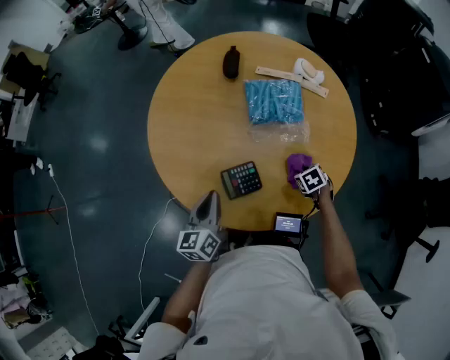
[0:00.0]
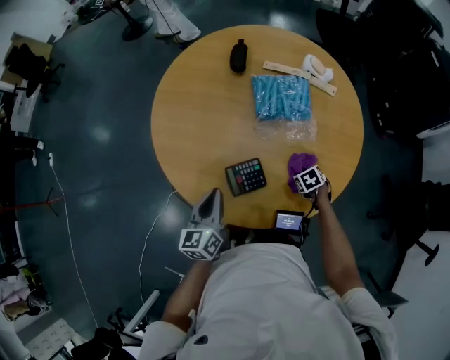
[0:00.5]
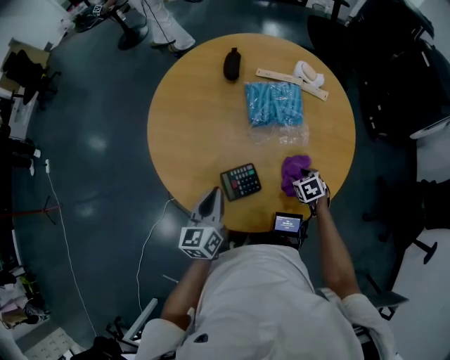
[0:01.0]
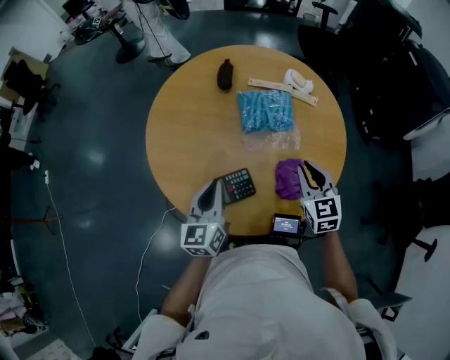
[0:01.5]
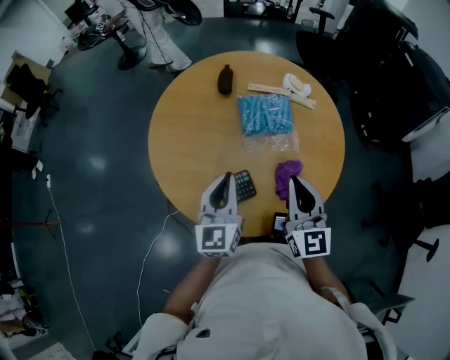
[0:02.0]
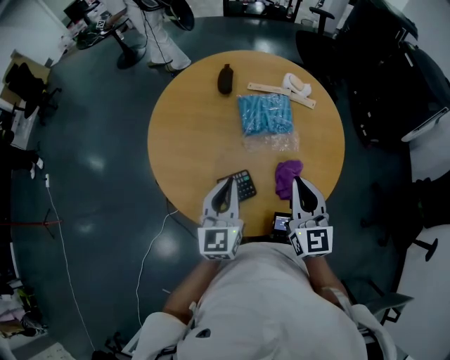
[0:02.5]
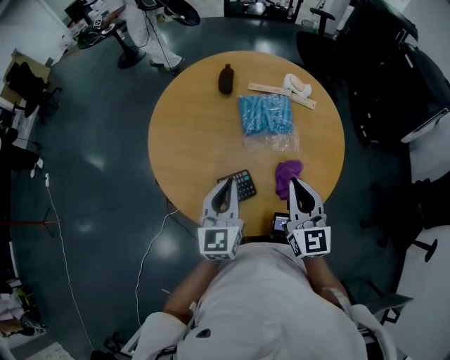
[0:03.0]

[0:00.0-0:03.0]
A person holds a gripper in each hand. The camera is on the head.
0:00.0 to 0:01.5: The right gripper is displaced upward by roughly 25 cm, angles its fingers upward, by some 50 degrees, and opens, then closes once more; the left gripper travels upward by approximately 5 cm.
0:01.5 to 0:03.0: The left gripper shifts by about 5 cm. The right gripper moves upward, backward and to the left, about 10 cm, and rotates some 20 degrees.

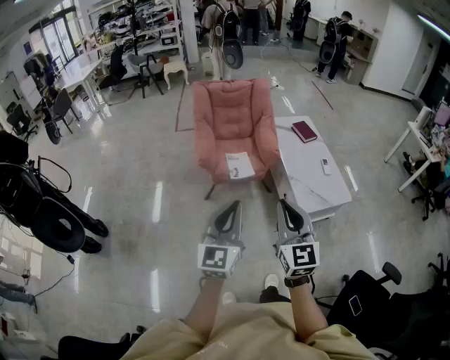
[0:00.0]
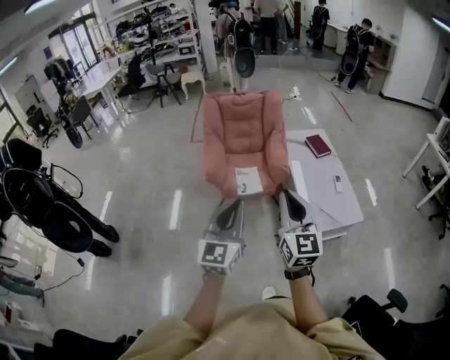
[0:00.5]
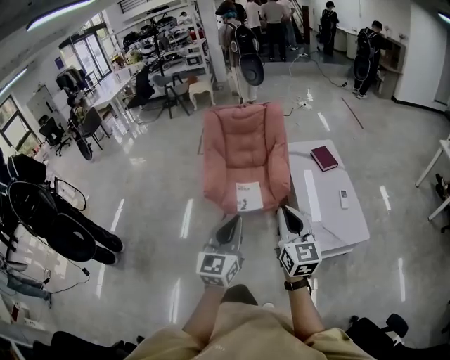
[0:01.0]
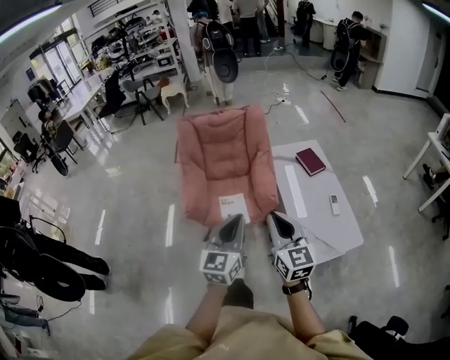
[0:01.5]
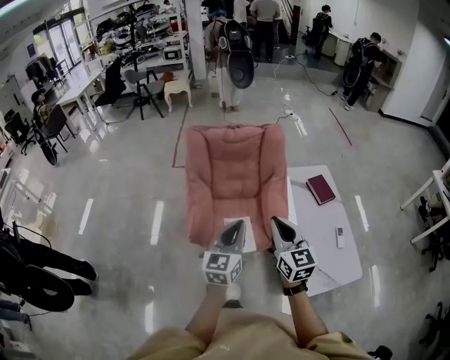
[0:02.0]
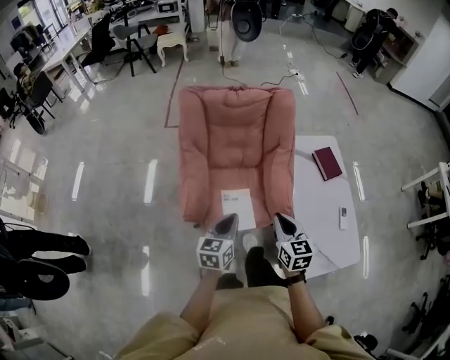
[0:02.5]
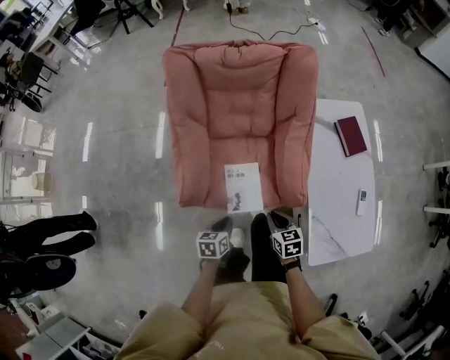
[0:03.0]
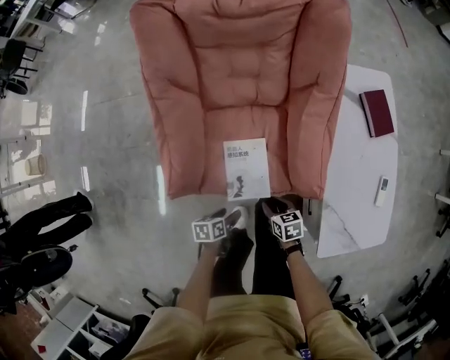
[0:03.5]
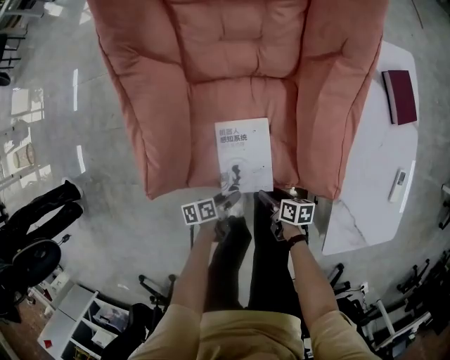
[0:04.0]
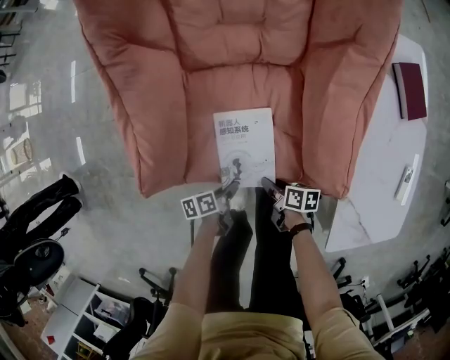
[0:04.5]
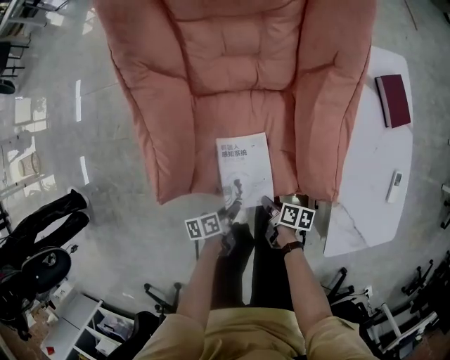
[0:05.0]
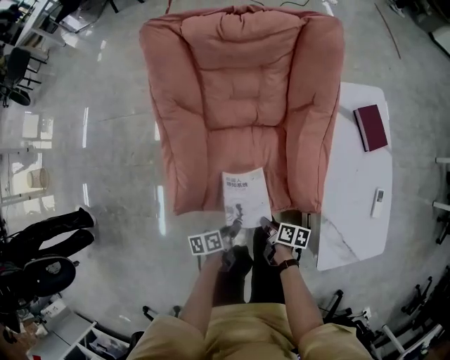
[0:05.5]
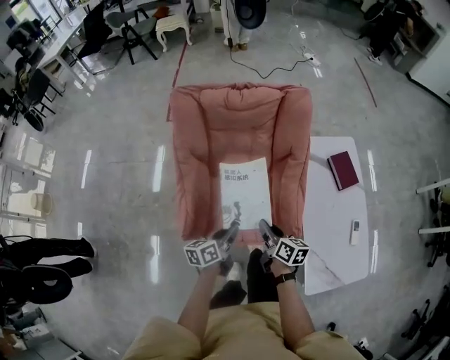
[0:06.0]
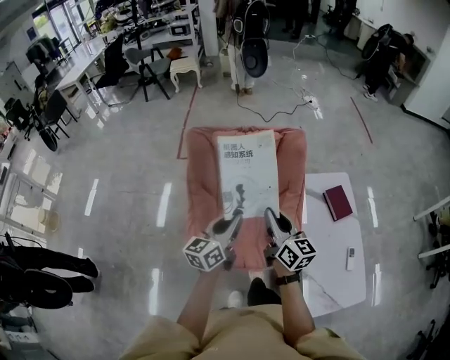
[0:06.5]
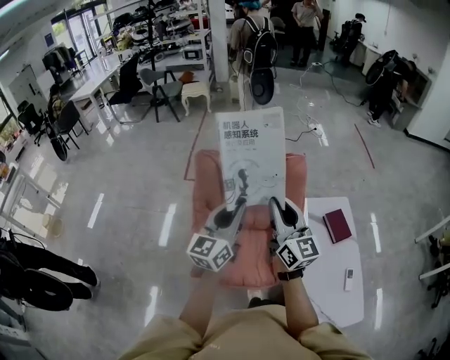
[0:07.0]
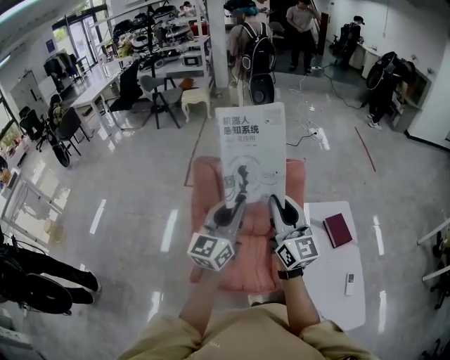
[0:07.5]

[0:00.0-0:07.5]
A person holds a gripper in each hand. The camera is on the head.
0:00.0 to 0:02.0: The two grippers travel together, forward, approximately 50 cm.
0:02.0 to 0:04.0: The two grippers go about 70 cm downward. The left gripper points its fingers approximately 40 degrees further downward, and opens; the right gripper tilts its fingers approximately 40 degrees downward, and opens its fingers.
0:04.0 to 0:05.5: The grippers both shift upward by roughly 15 cm. The right gripper closes its fingers. The left gripper closes up.
0:05.5 to 0:07.5: The grippers both shift upward by roughly 60 cm. The left gripper tips its fingers upward by about 50 degrees, while the right gripper angles its fingers upward, by approximately 60 degrees.

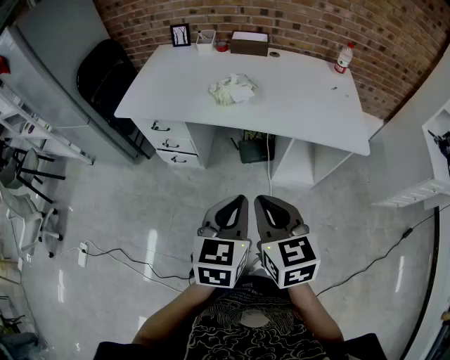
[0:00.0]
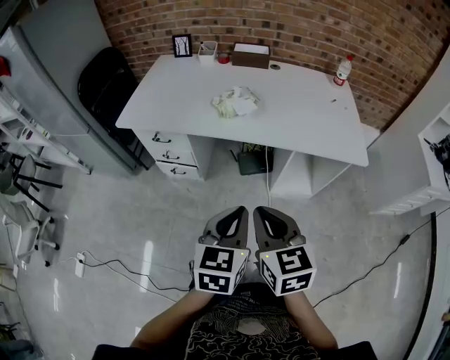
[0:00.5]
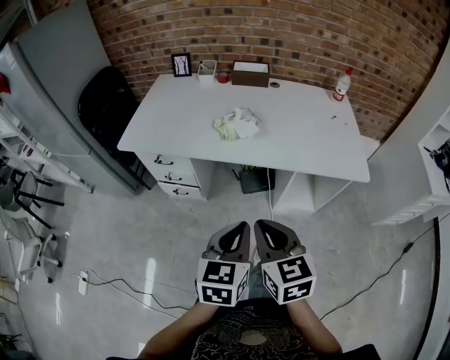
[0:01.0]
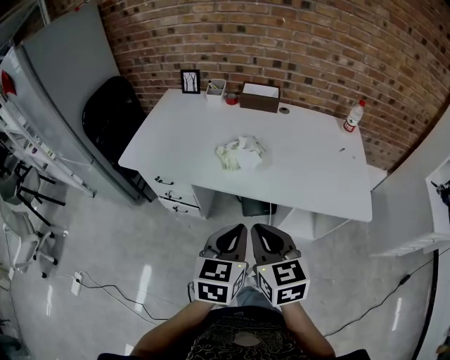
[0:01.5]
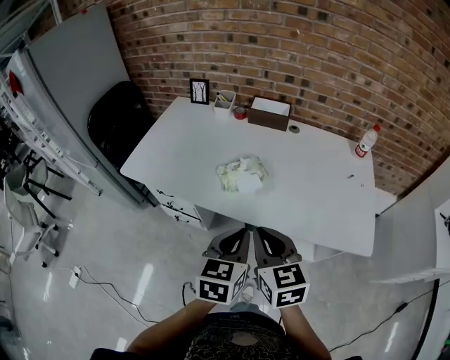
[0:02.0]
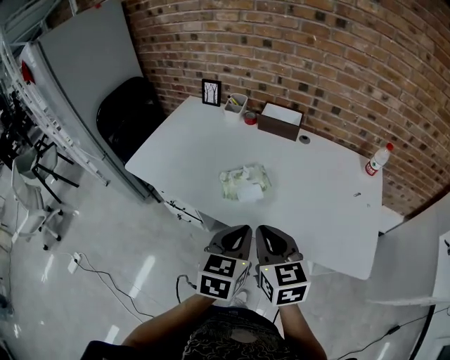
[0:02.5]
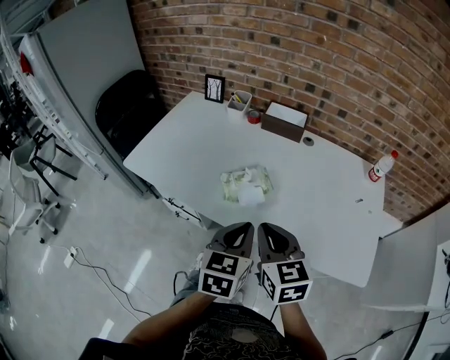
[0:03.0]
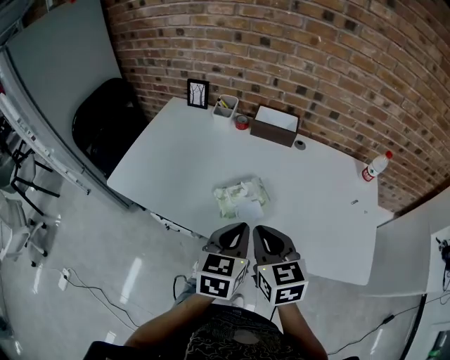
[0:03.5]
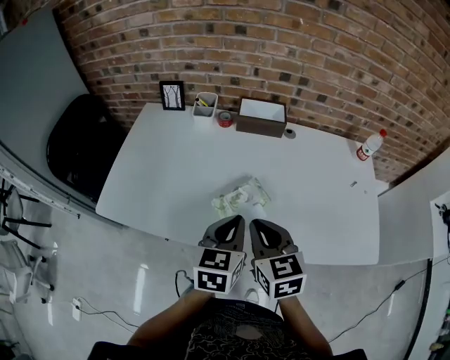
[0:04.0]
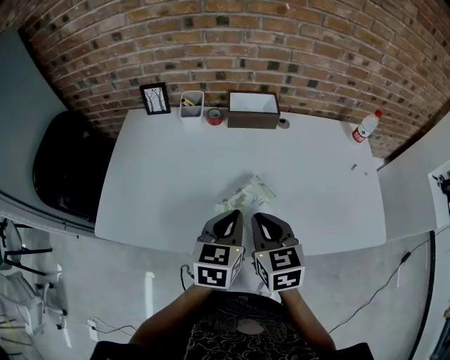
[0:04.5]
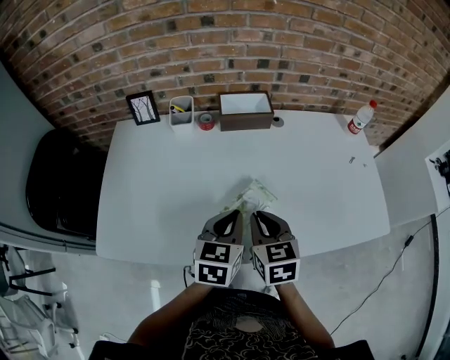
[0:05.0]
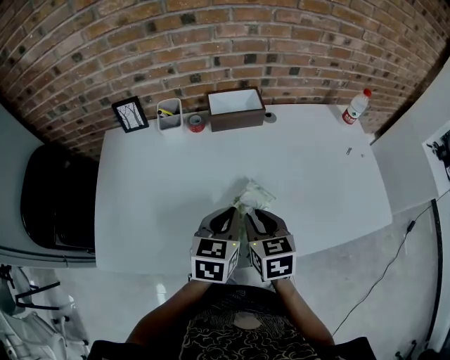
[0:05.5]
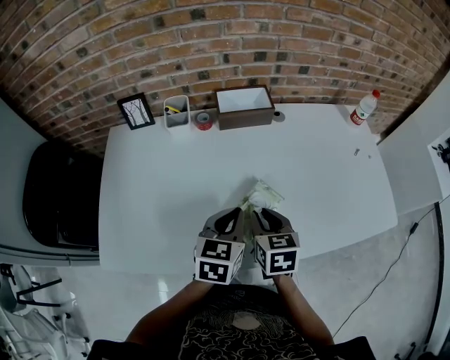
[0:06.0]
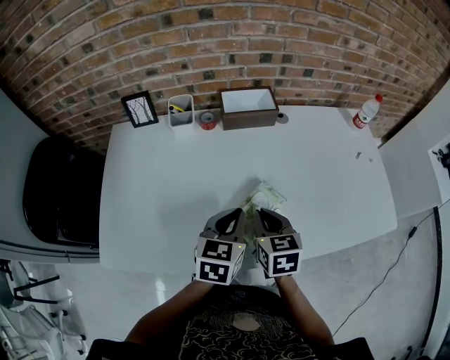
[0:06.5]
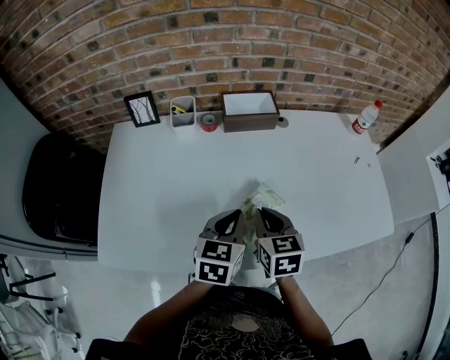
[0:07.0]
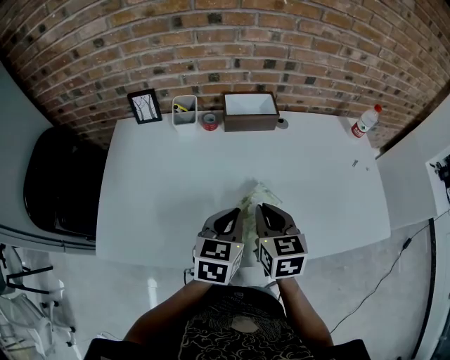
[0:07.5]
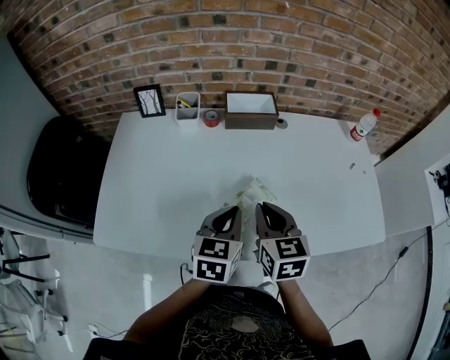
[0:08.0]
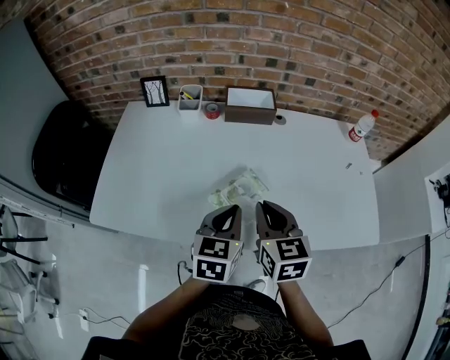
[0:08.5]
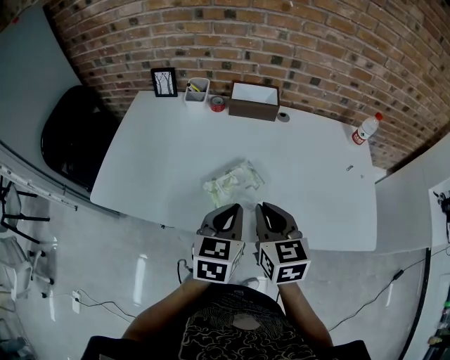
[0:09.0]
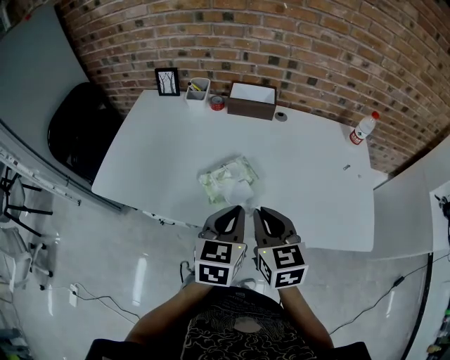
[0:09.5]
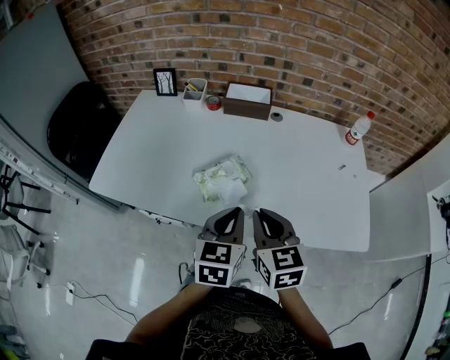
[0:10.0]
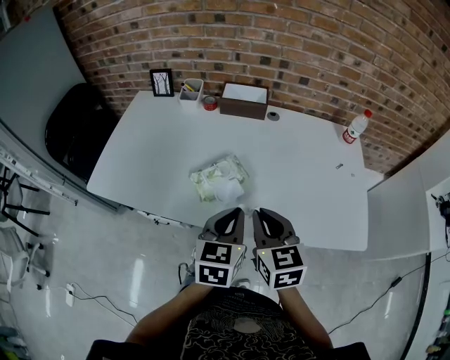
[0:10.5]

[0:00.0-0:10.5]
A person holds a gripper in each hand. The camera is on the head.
0:00.0 to 0:02.0: The grippers both shift forward by approximately 20 cm.
0:02.0 to 0:04.0: The grippers both shift forward by roughly 20 cm.
0:04.0 to 0:06.5: The left gripper travels forward, downward and to the left by some 10 cm. The right gripper moves downward and forward, roughly 15 cm, and swivels roughly 20 degrees.
0:06.5 to 0:08.5: The right gripper goes some 10 cm upward. The left gripper travels backward by roughly 5 cm.
0:08.5 to 0:10.5: The left gripper heads to the right and backward, covering about 10 cm. The right gripper heads backward and to the right, covering roughly 10 cm.

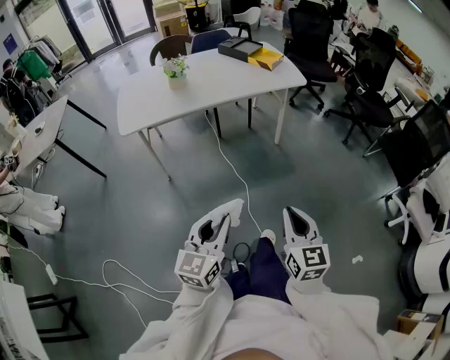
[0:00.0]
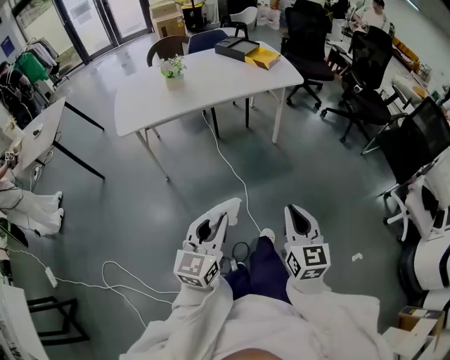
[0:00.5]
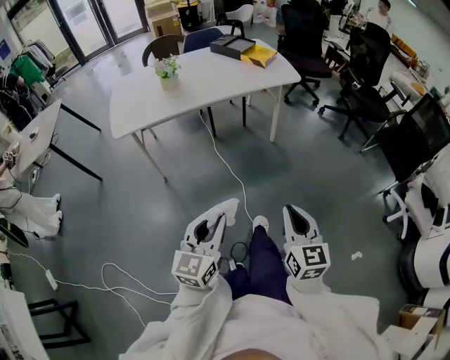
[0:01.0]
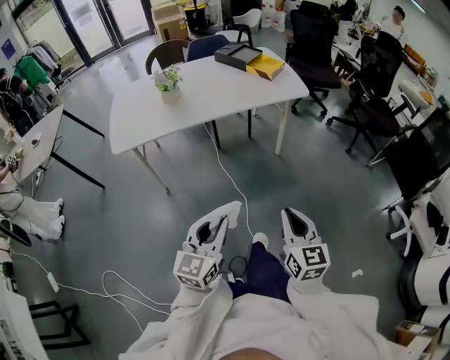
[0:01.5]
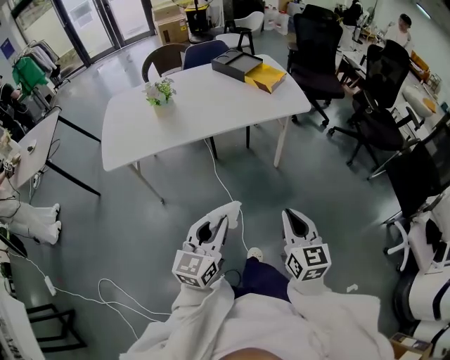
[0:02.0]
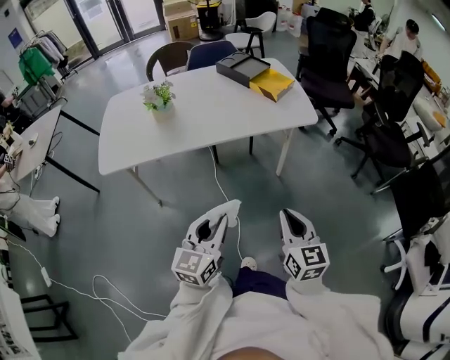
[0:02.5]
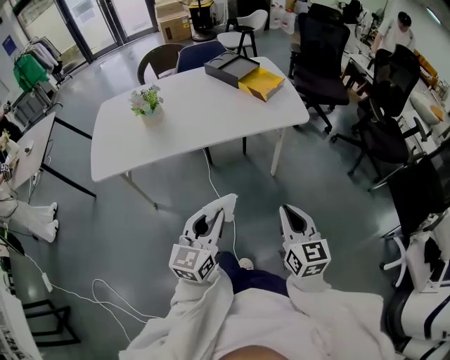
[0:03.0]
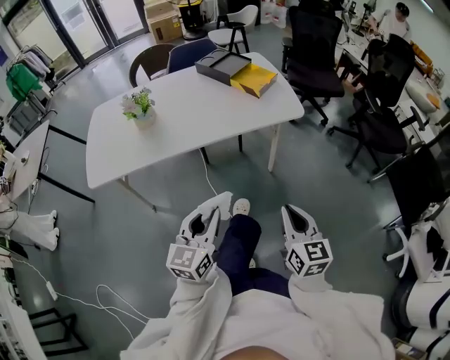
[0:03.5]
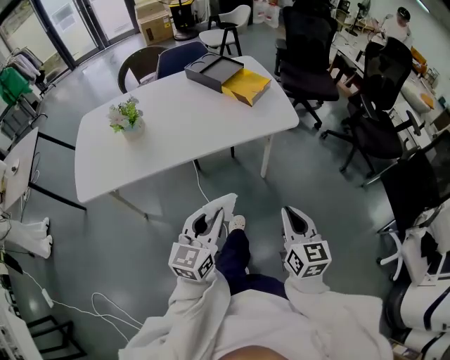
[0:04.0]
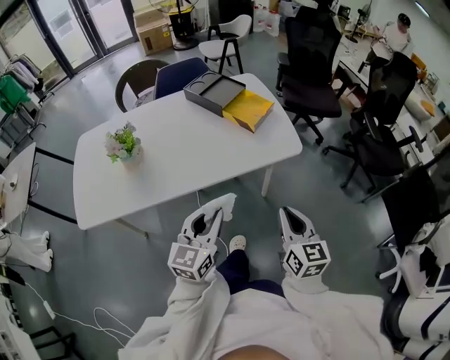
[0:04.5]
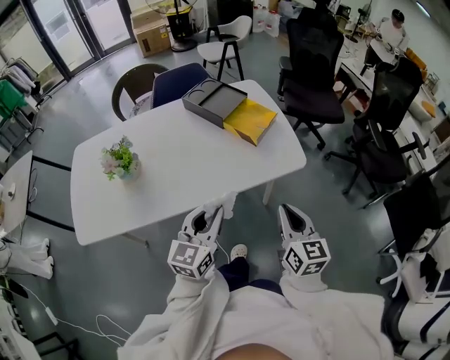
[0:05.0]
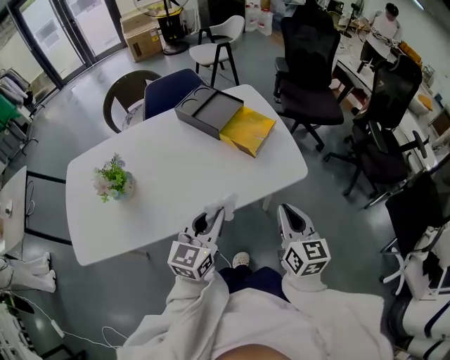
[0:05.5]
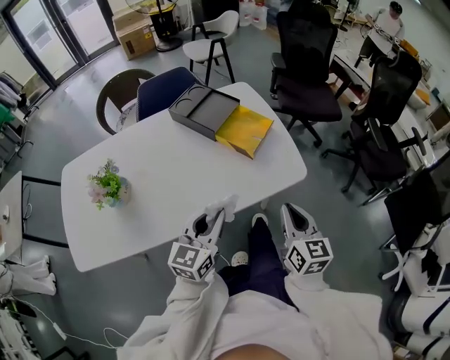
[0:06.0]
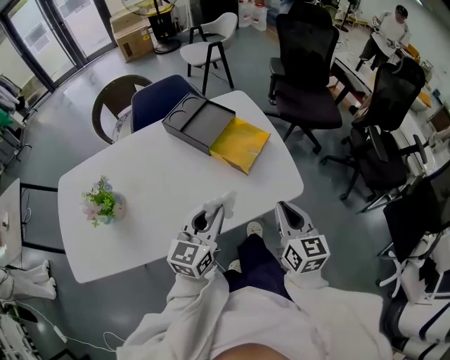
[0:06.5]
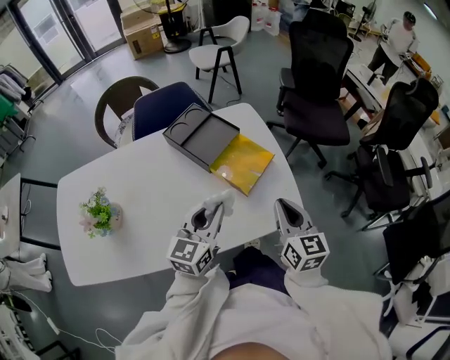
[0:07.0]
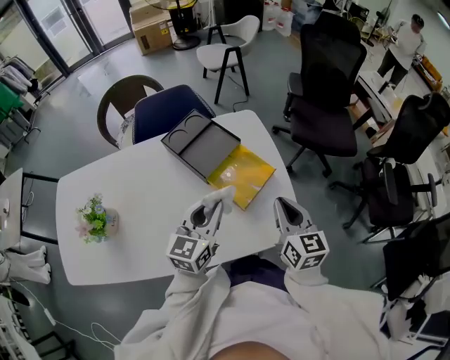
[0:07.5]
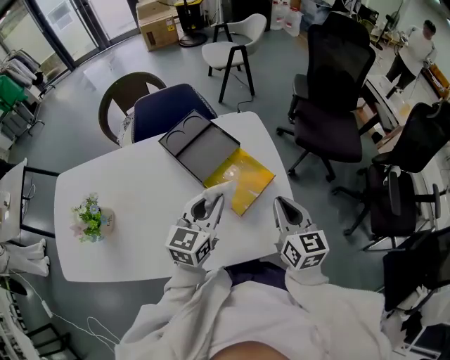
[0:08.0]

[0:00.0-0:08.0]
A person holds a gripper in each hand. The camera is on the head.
0:00.0 to 0:02.0: Both grippers travel together forward, some 20 cm.
0:02.0 to 0:04.0: The two grippers go approximately 20 cm forward and to the right.
0:04.0 to 0:06.0: Both grippers move forward, about 25 cm.
0:06.0 to 0:08.0: The two grippers go about 25 cm forward.
